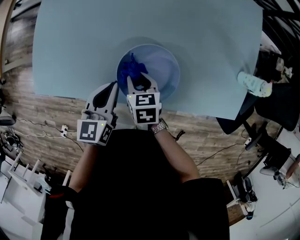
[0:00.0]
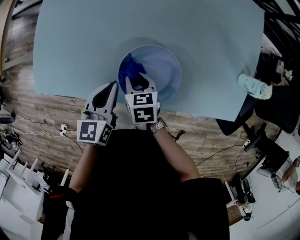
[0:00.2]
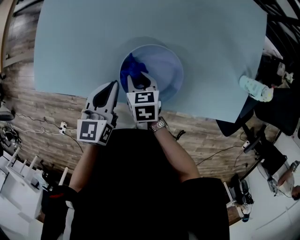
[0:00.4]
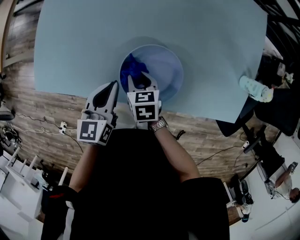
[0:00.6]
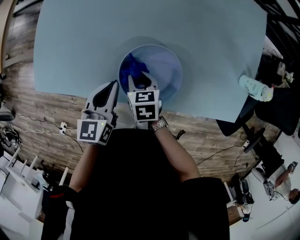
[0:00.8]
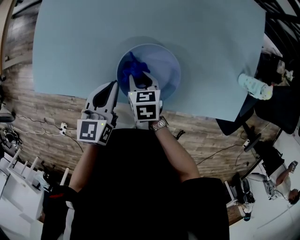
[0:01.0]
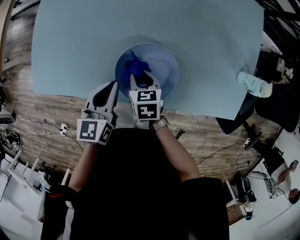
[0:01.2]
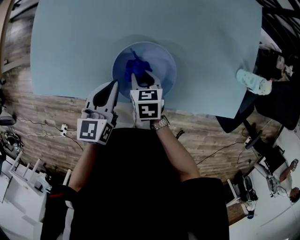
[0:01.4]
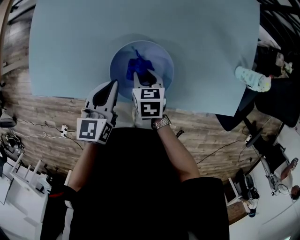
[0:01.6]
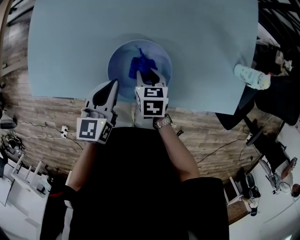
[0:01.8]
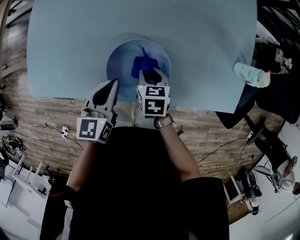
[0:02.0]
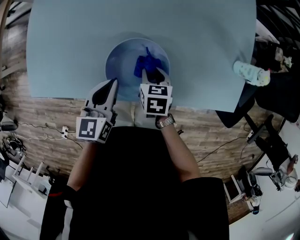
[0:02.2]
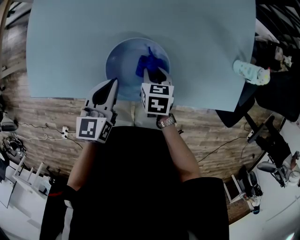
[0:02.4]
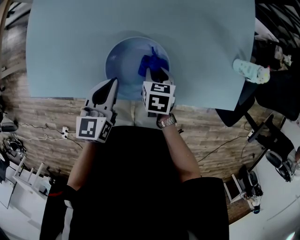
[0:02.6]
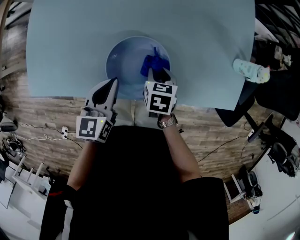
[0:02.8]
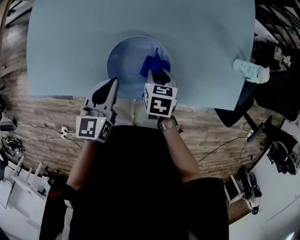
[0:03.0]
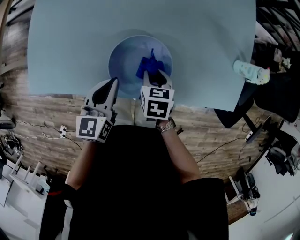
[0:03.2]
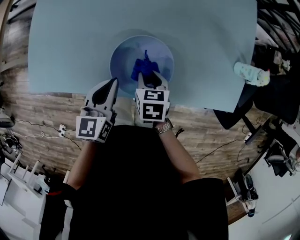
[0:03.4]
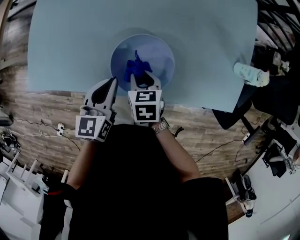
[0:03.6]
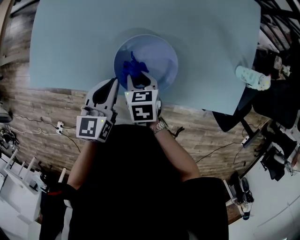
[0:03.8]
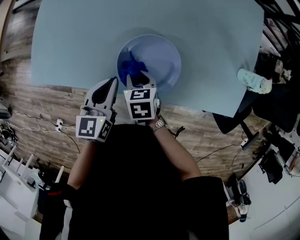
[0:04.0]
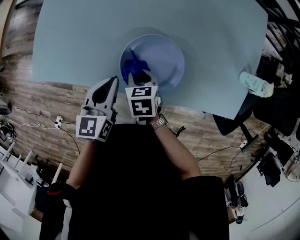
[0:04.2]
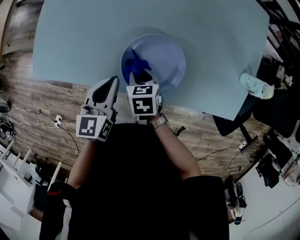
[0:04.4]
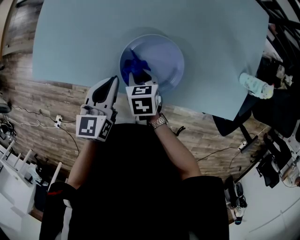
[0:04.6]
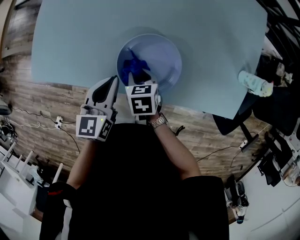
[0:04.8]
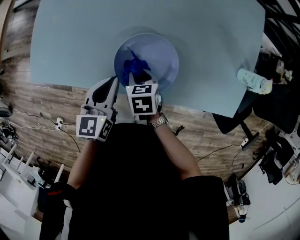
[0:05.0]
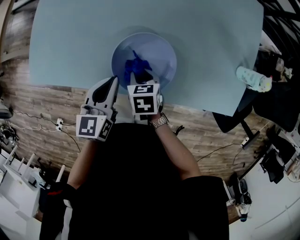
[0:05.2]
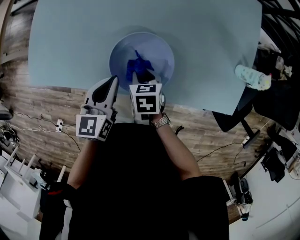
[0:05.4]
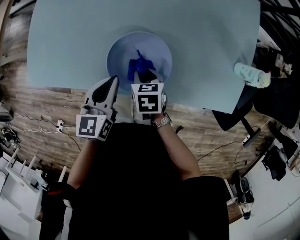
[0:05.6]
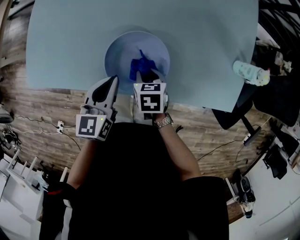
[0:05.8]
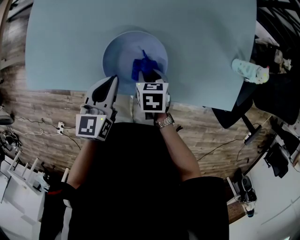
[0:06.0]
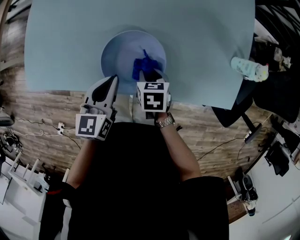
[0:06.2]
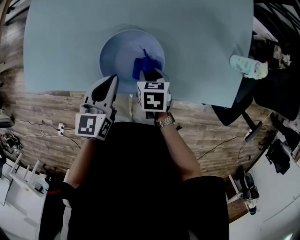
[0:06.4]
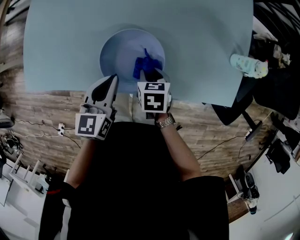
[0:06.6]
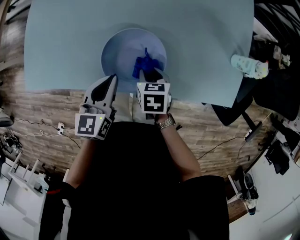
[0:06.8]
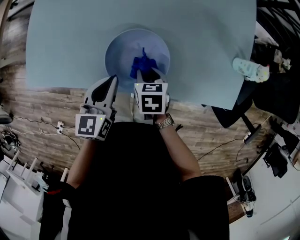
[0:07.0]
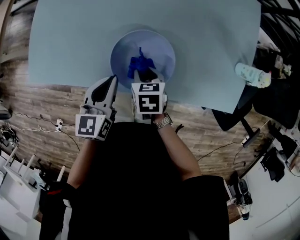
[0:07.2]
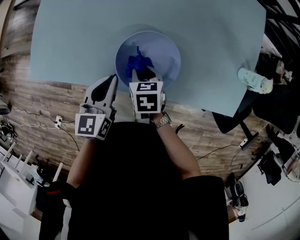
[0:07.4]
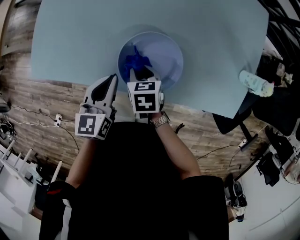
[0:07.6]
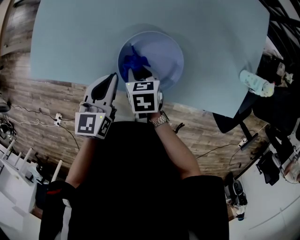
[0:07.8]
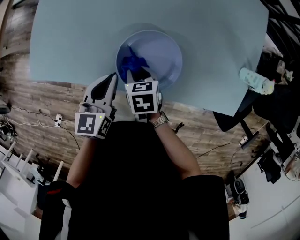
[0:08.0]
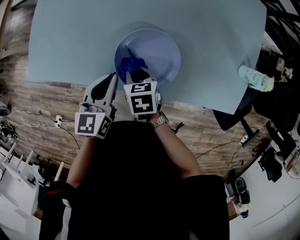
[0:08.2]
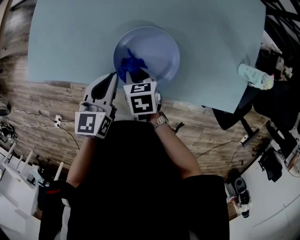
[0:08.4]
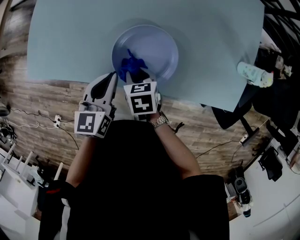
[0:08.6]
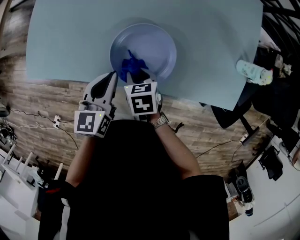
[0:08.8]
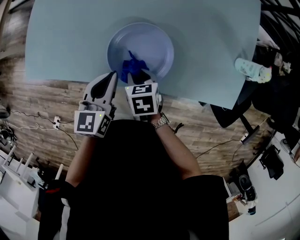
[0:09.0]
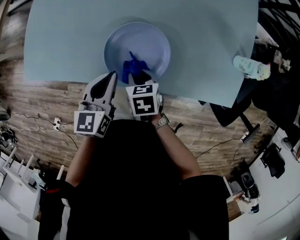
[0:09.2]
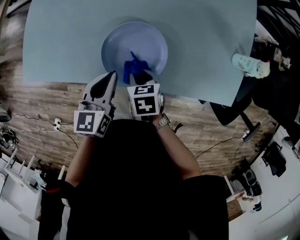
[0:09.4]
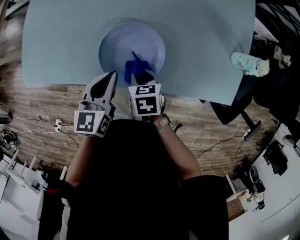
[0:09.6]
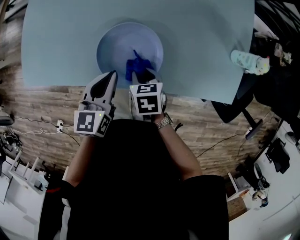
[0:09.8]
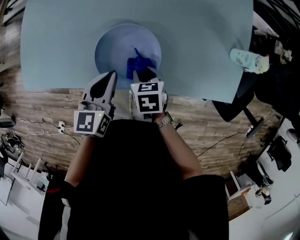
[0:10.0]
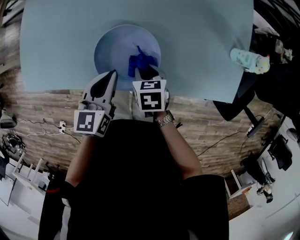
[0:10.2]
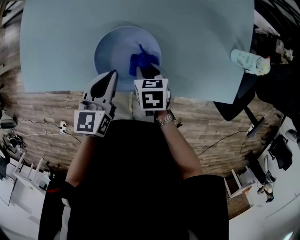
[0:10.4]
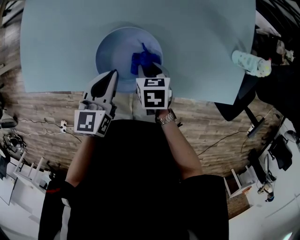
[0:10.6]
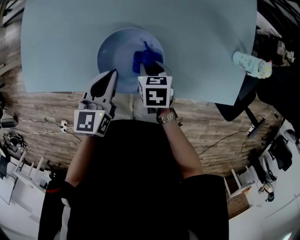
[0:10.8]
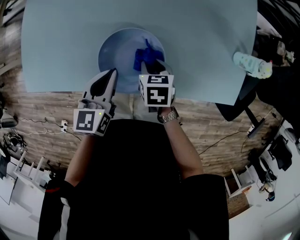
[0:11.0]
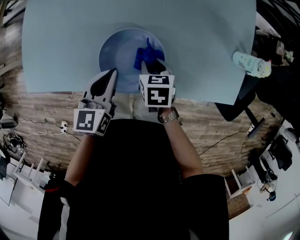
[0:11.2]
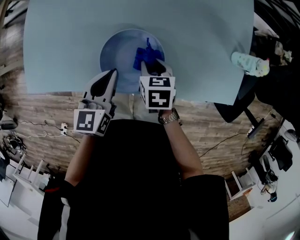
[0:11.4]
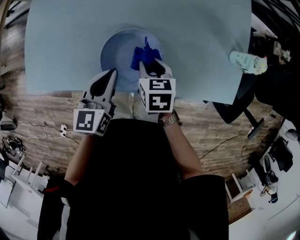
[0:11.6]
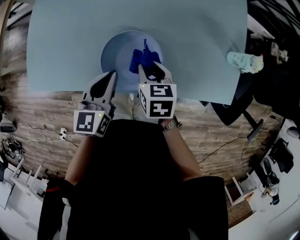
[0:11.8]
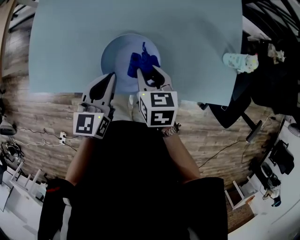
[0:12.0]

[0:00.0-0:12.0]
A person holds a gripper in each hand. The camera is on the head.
0:00.0 to 0:01.6: The right gripper ends up about 5 cm from where it was.
0:01.6 to 0:03.0: The right gripper moves to the right, about 5 cm.
0:03.0 to 0:04.4: The right gripper is displaced to the left by about 15 cm; the left gripper goes about 5 cm to the left.
0:04.4 to 0:06.0: Both grippers move to the right, some 10 cm.
0:06.0 to 0:07.6: The grippers both shift to the left by roughly 5 cm.
0:07.6 to 0:09.0: The right gripper moves backward, about 5 cm.
0:09.0 to 0:10.4: The left gripper goes about 5 cm to the right, while the right gripper moves to the right, roughly 10 cm.
0:10.4 to 0:12.0: The left gripper moves upward, approximately 5 cm; the right gripper shifts some 10 cm upward.

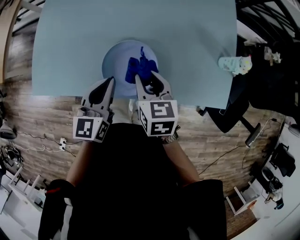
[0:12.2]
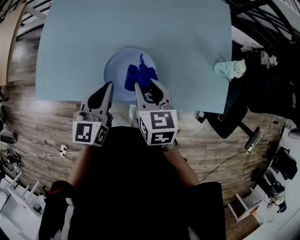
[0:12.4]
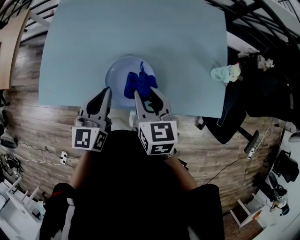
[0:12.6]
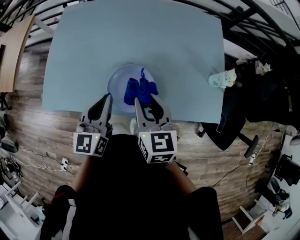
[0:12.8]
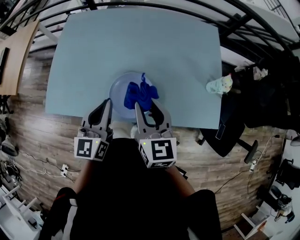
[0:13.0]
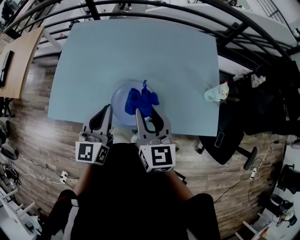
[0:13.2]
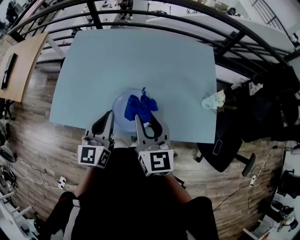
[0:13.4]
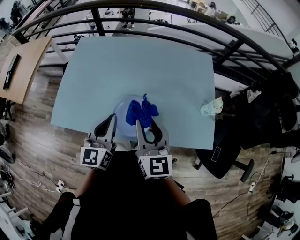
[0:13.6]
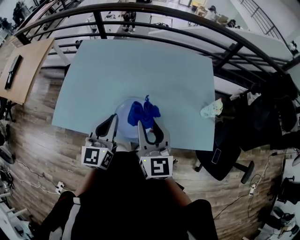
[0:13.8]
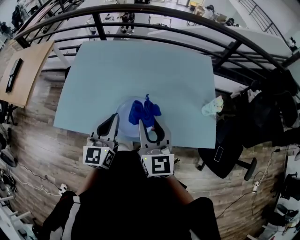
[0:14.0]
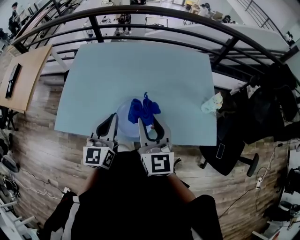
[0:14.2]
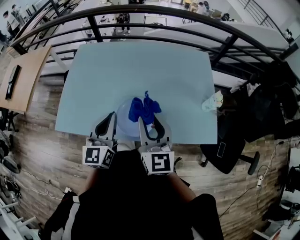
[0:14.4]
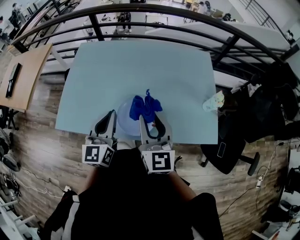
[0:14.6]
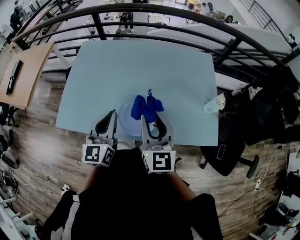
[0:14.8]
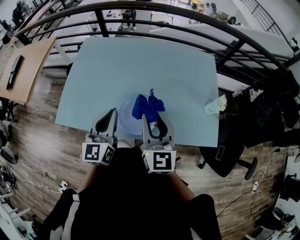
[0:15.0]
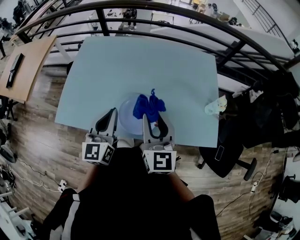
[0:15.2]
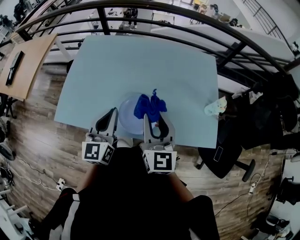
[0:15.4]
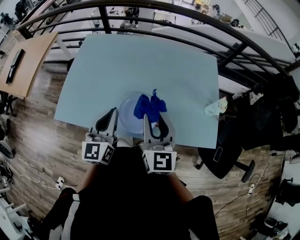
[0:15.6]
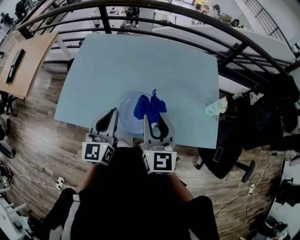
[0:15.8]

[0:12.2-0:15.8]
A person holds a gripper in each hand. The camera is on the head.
0:12.2 to 0:14.0: The grippers both shift upward by some 20 cm. The right gripper angles its fingers upward, by roughly 40 degrees.
0:14.0 to 0:15.8: There are only small adjustments of the grippers.

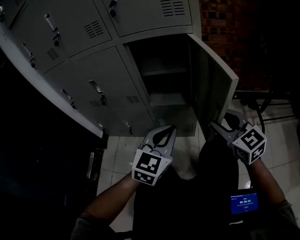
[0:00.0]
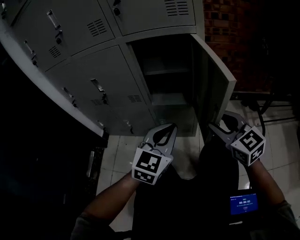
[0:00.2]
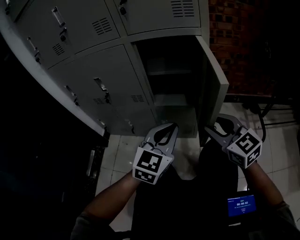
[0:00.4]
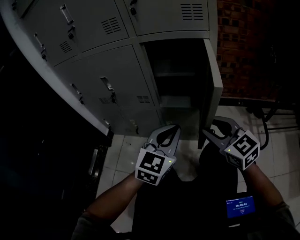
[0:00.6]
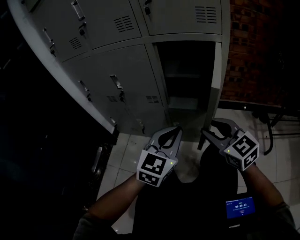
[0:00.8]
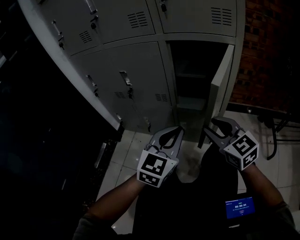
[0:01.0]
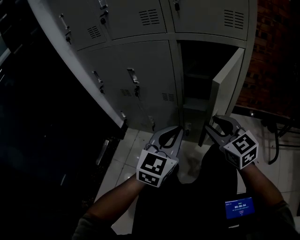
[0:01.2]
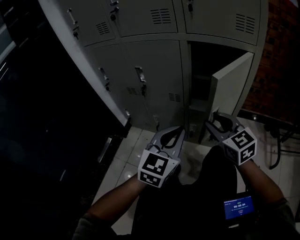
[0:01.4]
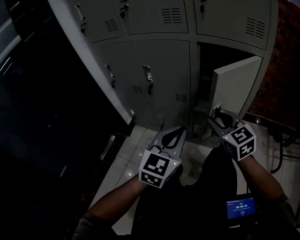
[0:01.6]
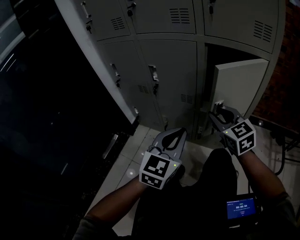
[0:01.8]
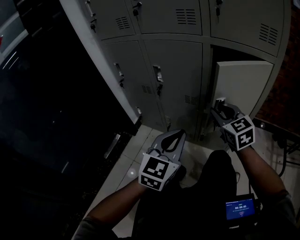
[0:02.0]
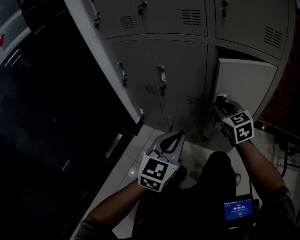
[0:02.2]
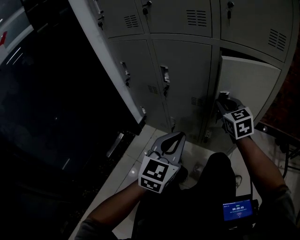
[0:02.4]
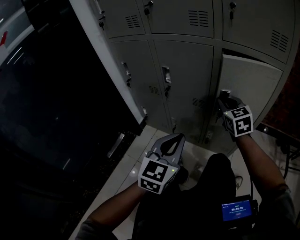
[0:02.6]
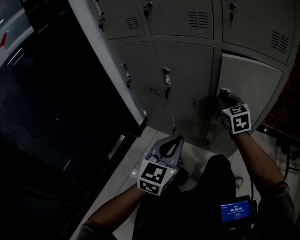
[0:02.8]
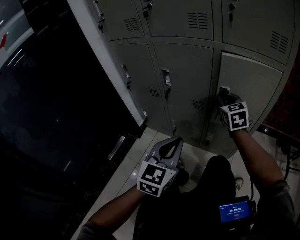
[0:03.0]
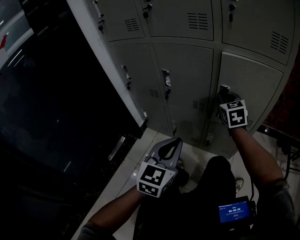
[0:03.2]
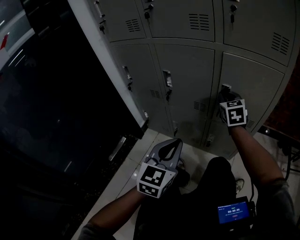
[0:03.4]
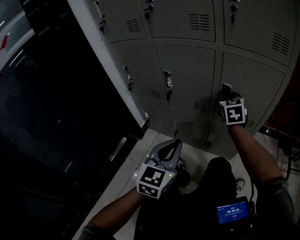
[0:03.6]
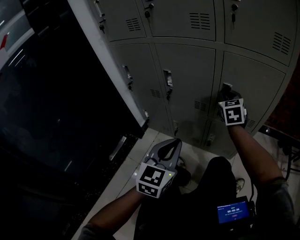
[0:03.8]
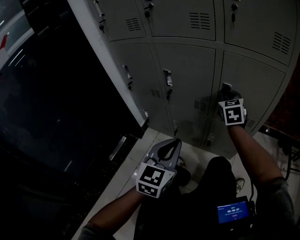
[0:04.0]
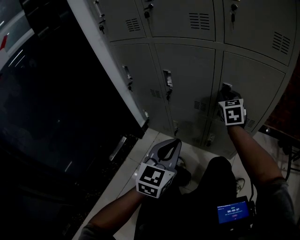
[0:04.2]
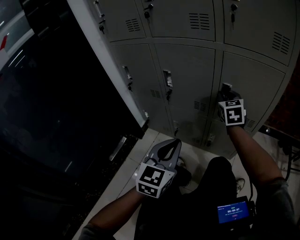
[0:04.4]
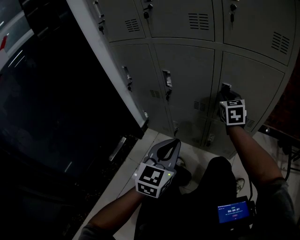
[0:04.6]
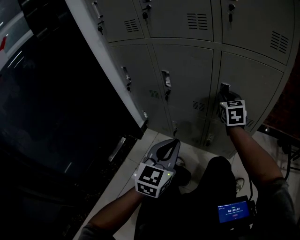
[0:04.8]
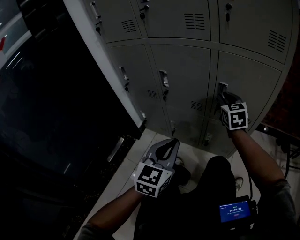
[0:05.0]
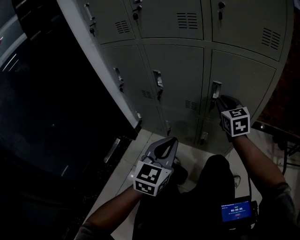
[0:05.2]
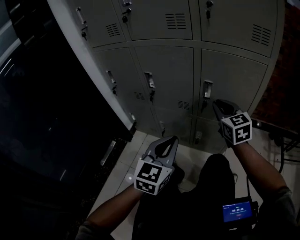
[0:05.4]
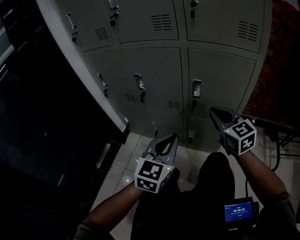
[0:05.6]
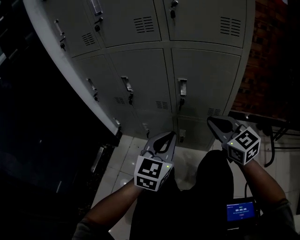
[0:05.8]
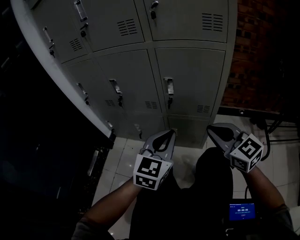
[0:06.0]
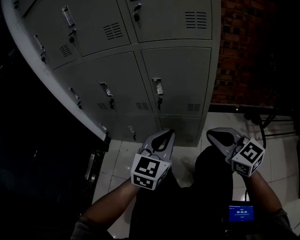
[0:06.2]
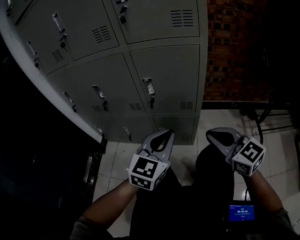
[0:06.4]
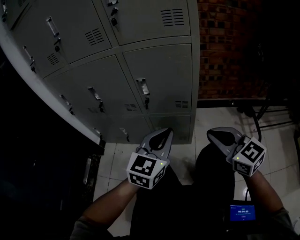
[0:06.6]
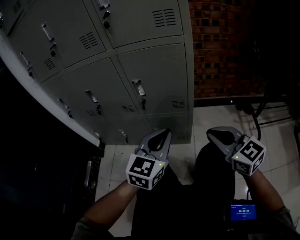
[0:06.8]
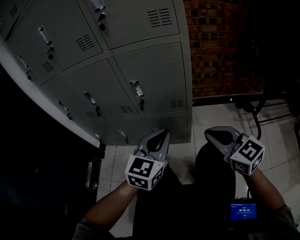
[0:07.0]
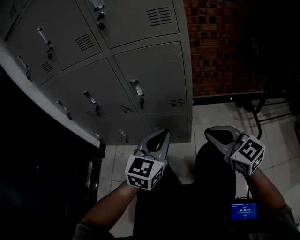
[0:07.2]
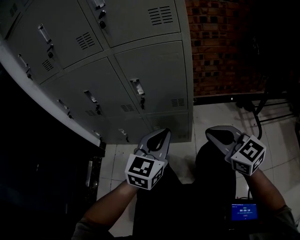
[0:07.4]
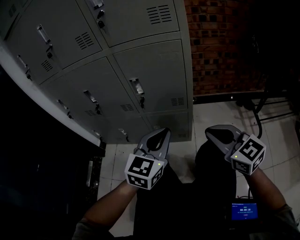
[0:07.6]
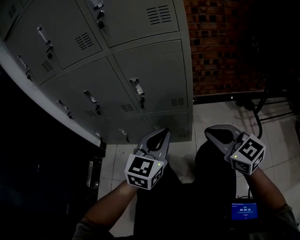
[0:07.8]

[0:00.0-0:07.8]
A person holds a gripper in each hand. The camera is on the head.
0:00.0 to 0:01.6: The right gripper goes approximately 20 cm to the left and forward. The left gripper heads to the left, covering about 15 cm.
0:01.6 to 0:03.2: The right gripper heads forward, covering approximately 15 cm, and closes its fingers. Meanwhile the left gripper shifts some 10 cm to the left.
0:03.2 to 0:04.6: The grippers stay close to where they were, moving slightly.
0:04.6 to 0:06.2: The right gripper moves backward and to the right, about 30 cm, and swivels about 30 degrees. The left gripper goes roughly 20 cm to the right.
0:06.2 to 0:07.8: The two grippers go roughly 5 cm to the right.
